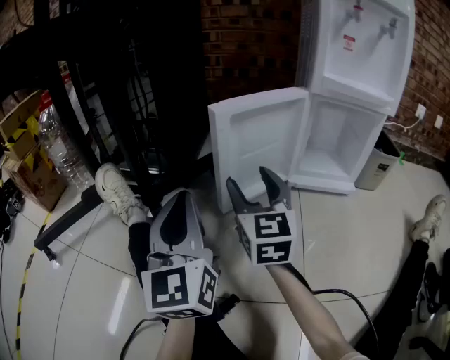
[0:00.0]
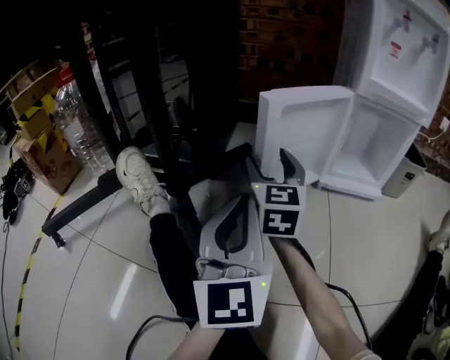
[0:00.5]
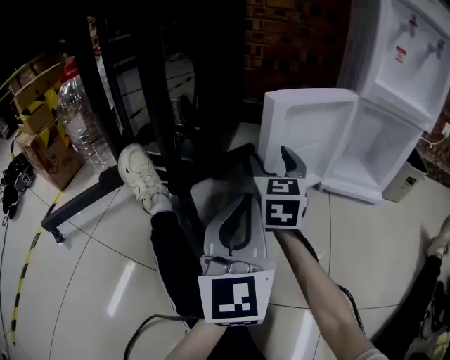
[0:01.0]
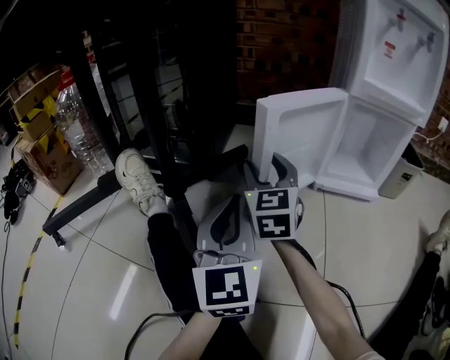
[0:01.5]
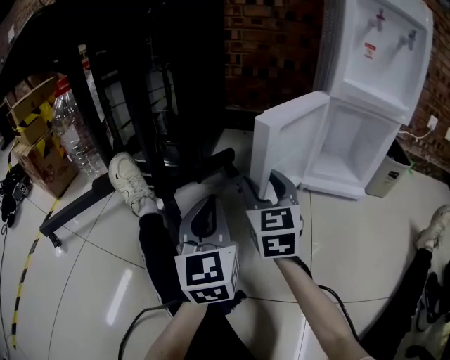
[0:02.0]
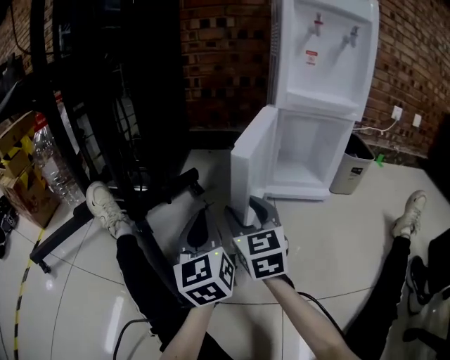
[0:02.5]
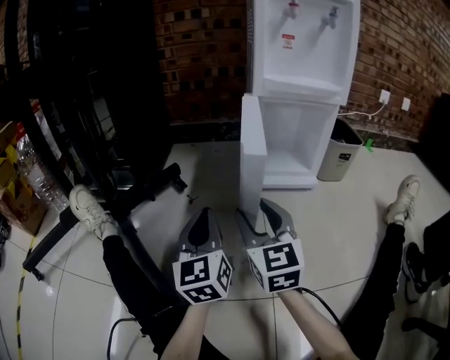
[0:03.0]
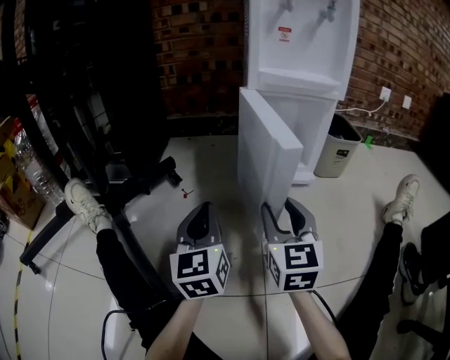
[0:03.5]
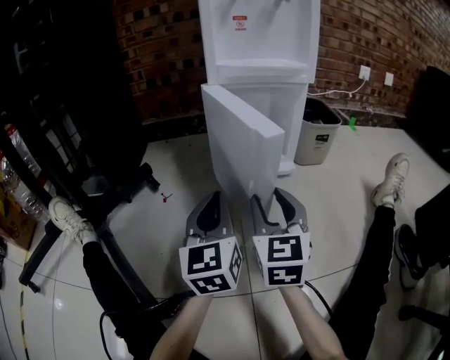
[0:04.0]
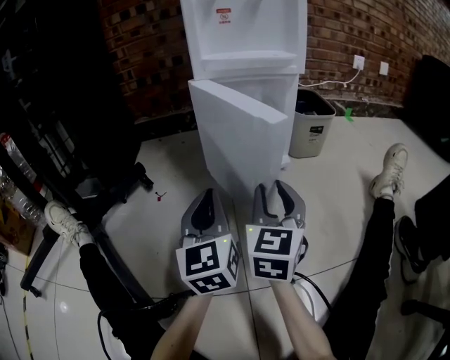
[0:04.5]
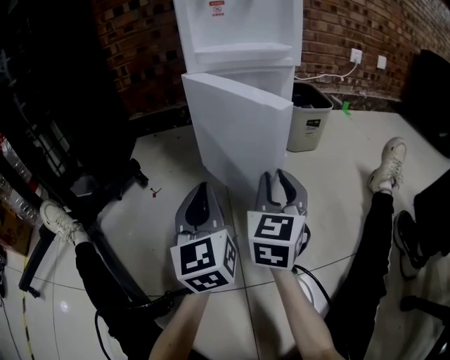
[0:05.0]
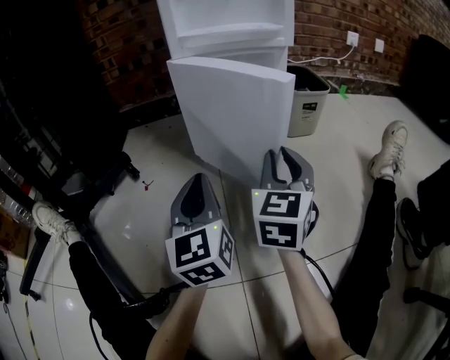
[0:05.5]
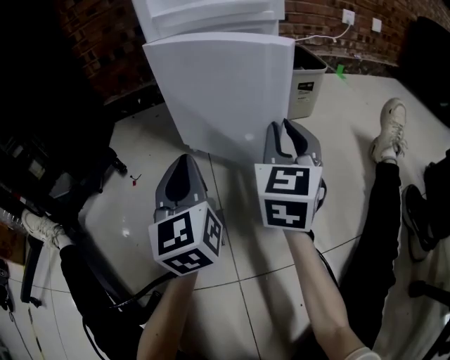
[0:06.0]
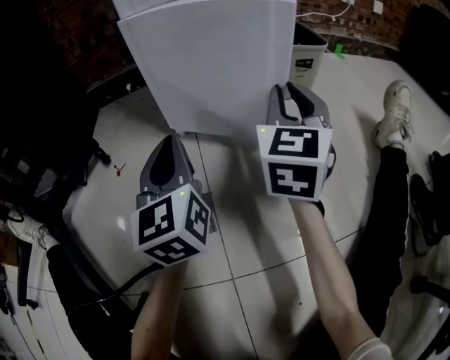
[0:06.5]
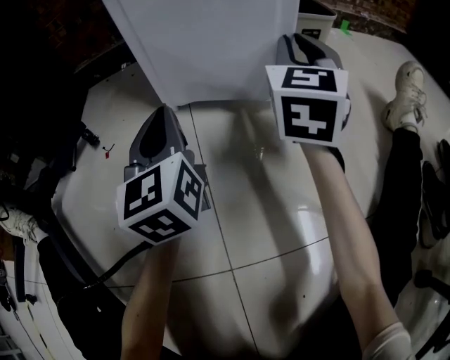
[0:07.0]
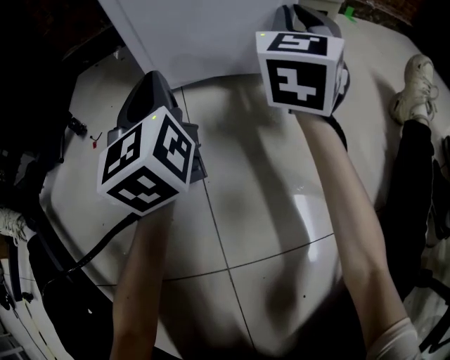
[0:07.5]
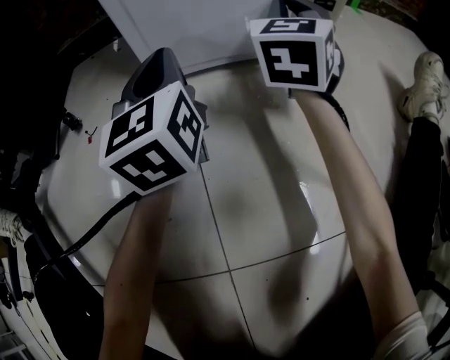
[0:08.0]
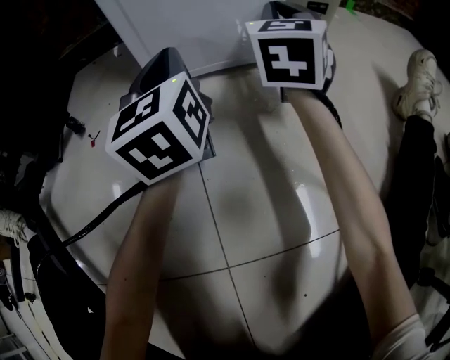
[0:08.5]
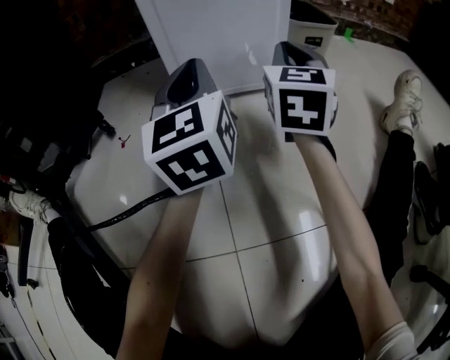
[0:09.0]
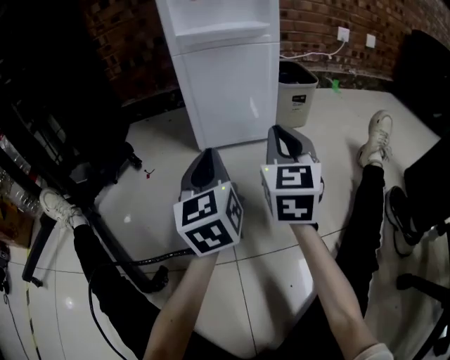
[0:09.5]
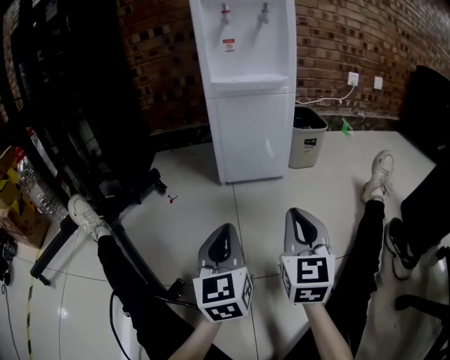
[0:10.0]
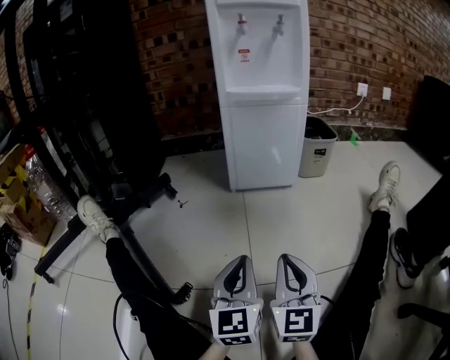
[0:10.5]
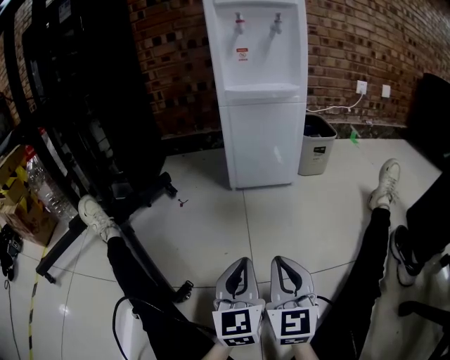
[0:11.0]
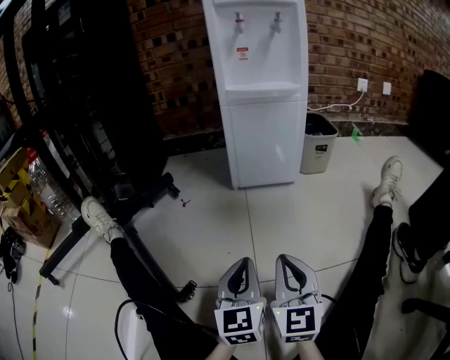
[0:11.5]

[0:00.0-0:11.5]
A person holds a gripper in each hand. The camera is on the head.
0:00.0 to 0:02.0: The left gripper is displaced downward by about 5 cm. The right gripper reaches approximately 10 cm forward, then returns.
0:02.0 to 0:04.0: The two grippers go approximately 25 cm to the right. The left gripper turns by roughly 20 degrees, while the right gripper turns by approximately 20 degrees.
0:04.0 to 0:06.0: The right gripper travels to the right and forward by some 15 cm, and closes up. Meanwhile the left gripper goes roughly 5 cm forward.
0:06.0 to 0:07.5: Both grippers travel together forward, some 10 cm.
0:07.5 to 0:09.5: The left gripper is displaced backward and upward by roughly 15 cm. The right gripper shifts roughly 20 cm backward.
0:09.5 to 0:11.5: The right gripper travels backward by about 20 cm. The left gripper travels backward and downward by roughly 20 cm.

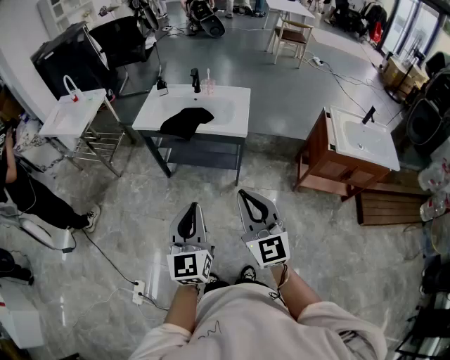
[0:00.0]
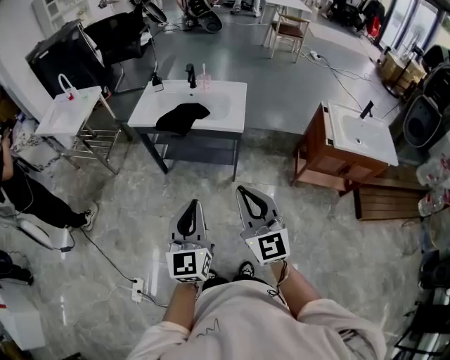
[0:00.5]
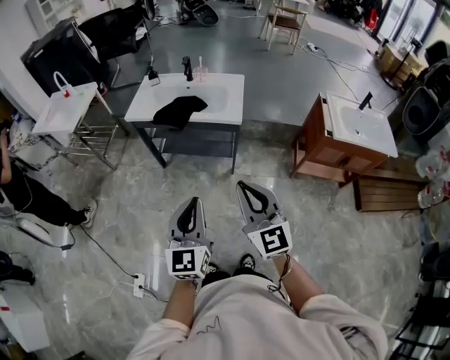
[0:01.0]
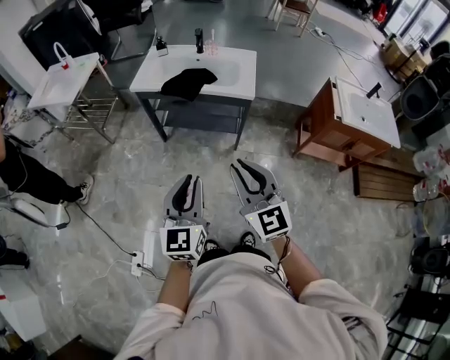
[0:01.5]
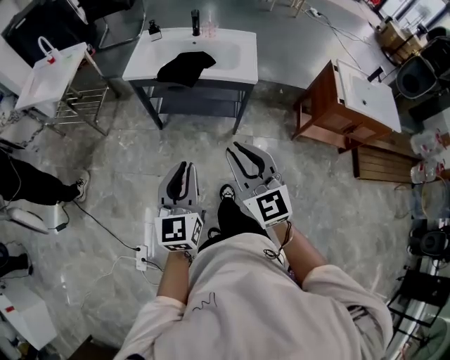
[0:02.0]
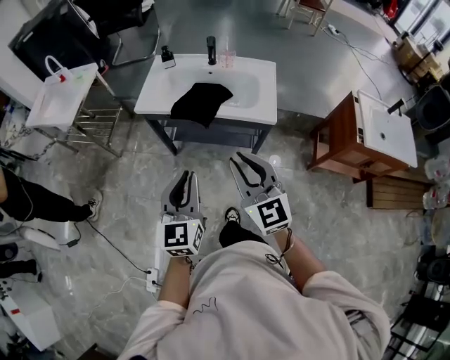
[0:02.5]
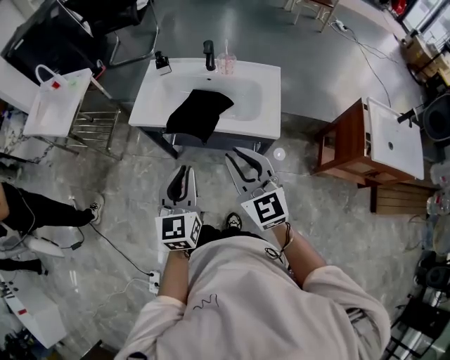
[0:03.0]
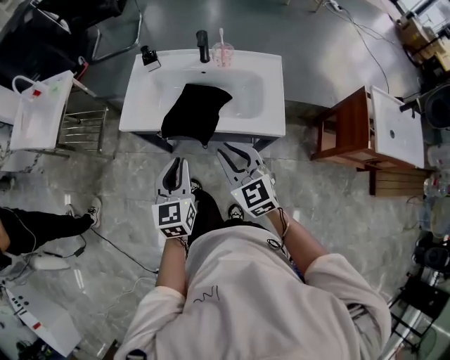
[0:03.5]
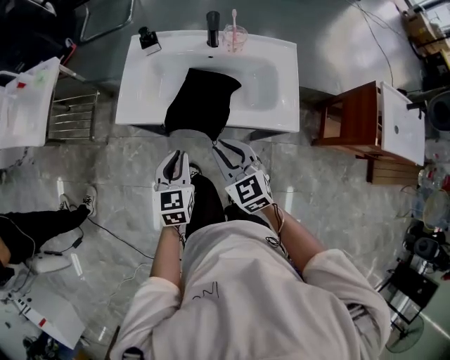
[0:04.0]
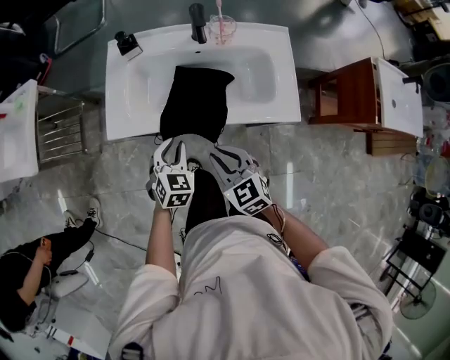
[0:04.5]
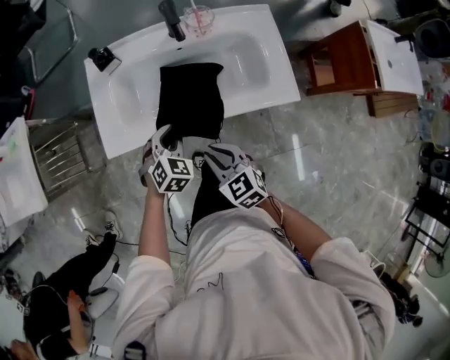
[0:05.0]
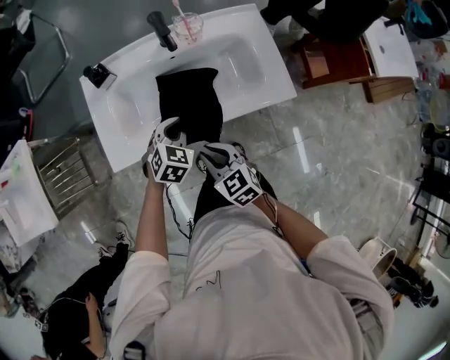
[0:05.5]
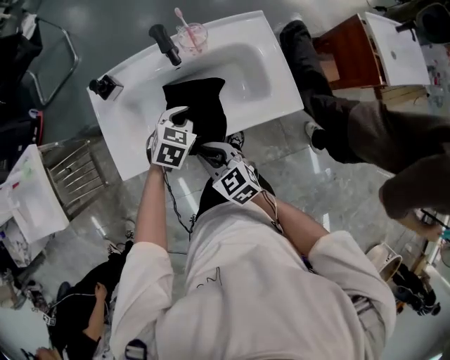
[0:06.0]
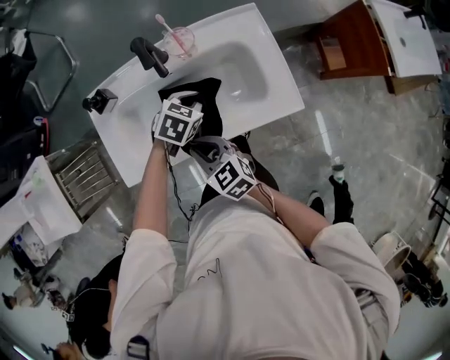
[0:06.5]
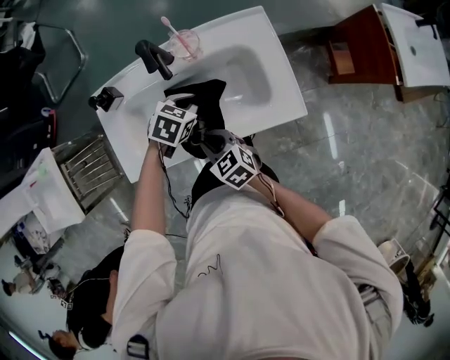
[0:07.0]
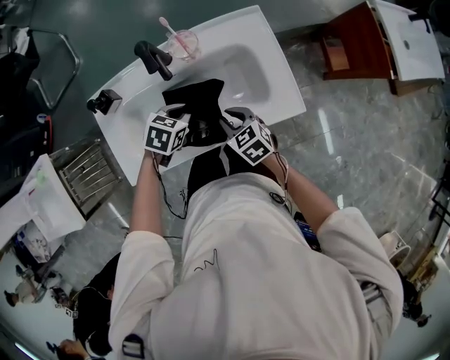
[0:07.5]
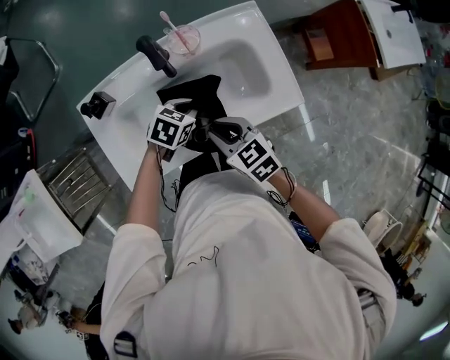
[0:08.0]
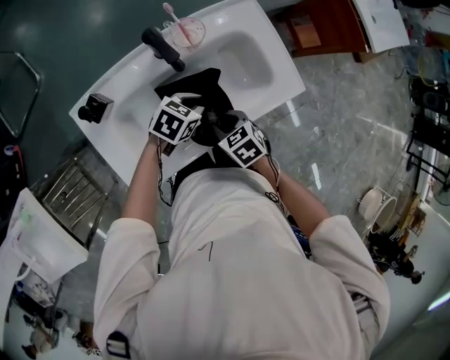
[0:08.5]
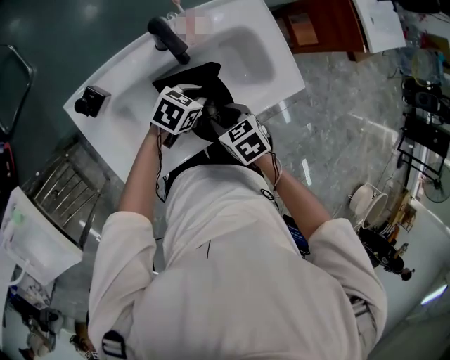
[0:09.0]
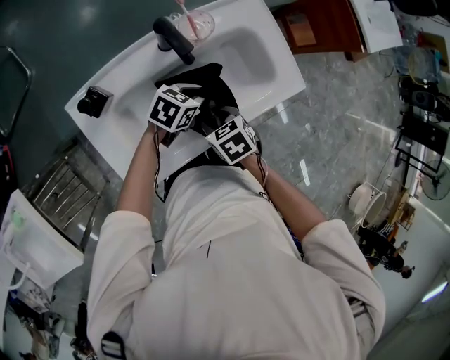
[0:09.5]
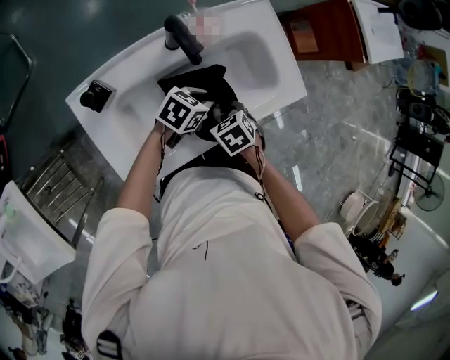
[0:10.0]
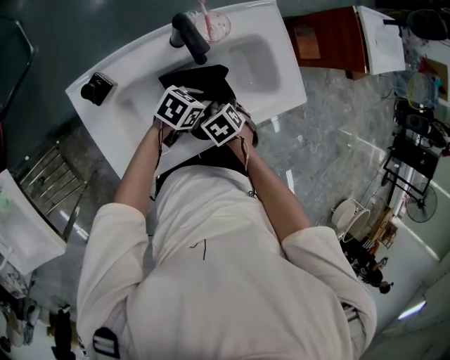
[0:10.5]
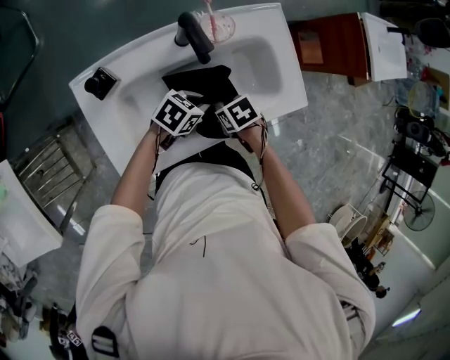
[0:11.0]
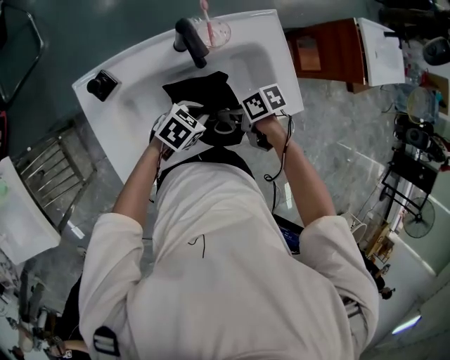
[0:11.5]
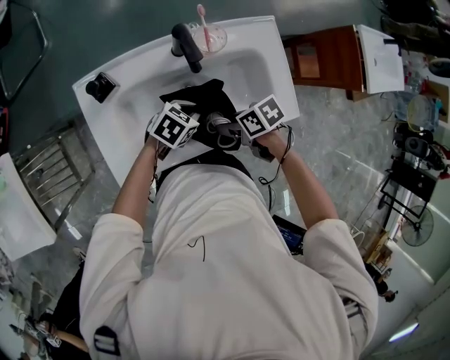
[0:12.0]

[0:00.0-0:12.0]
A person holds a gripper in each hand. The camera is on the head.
0:00.0 to 0:02.0: The right gripper goes some 15 cm to the left, forward and downward, while the left gripper moves to the left, downward and forward, approximately 15 cm.
0:02.0 to 0:04.0: The pair of grippers is taken forward, some 40 cm. The right gripper swivels approximately 20 degrees; the left gripper swivels roughly 30 degrees.
0:04.0 to 0:06.0: The right gripper heads forward and downward, covering about 10 cm, and changes its angle by some 20 degrees; the left gripper heads forward and to the right, covering some 25 cm, and changes its angle by approximately 50 degrees.
0:06.0 to 0:08.0: The left gripper changes place by roughly 5 cm, and rotates about 20 degrees; the right gripper is displaced forward by roughly 10 cm.
0:08.0 to 0:10.0: The right gripper moves downward, approximately 10 cm, tilts its fingers some 30 degrees downward, and opens up, while the left gripper changes its angle by some 20 degrees.
0:10.0 to 0:12.0: The right gripper heads upward, covering approximately 5 cm, and changes its angle by approximately 30 degrees.

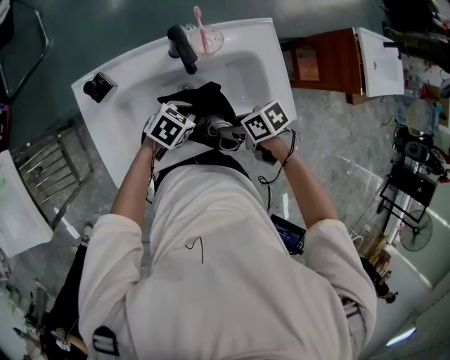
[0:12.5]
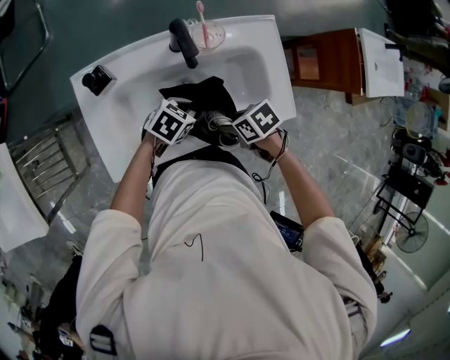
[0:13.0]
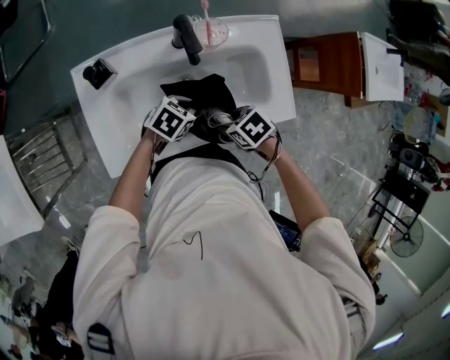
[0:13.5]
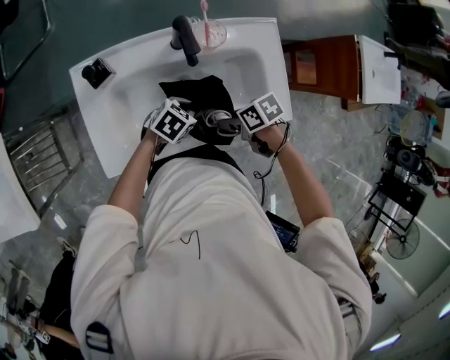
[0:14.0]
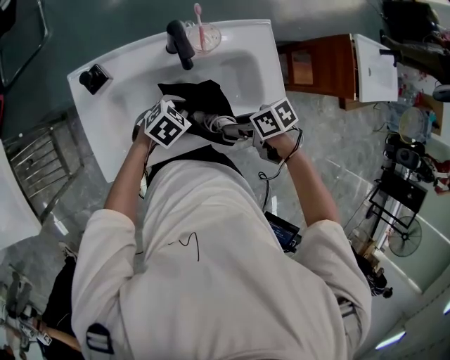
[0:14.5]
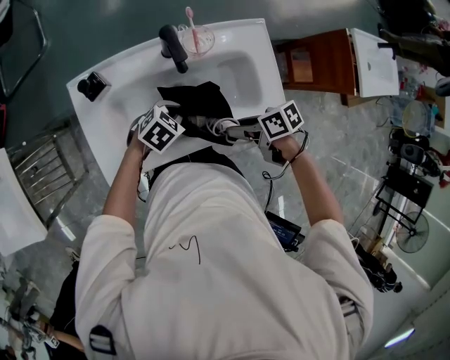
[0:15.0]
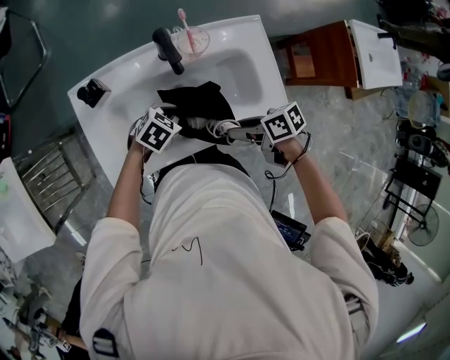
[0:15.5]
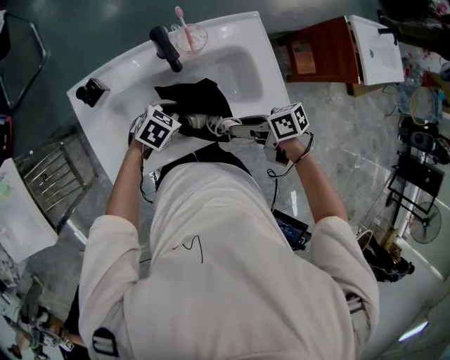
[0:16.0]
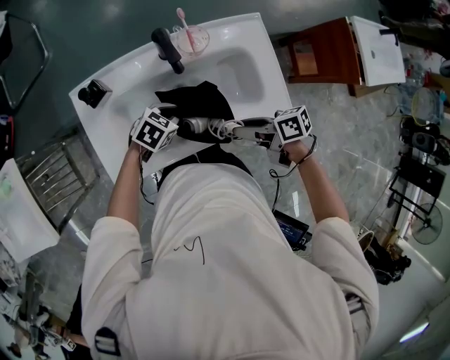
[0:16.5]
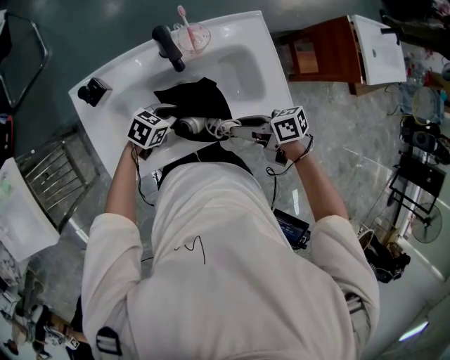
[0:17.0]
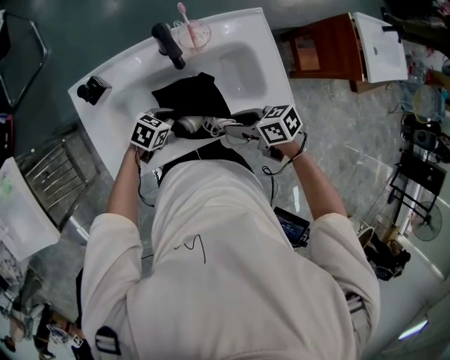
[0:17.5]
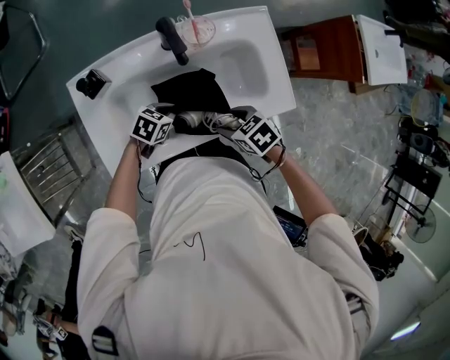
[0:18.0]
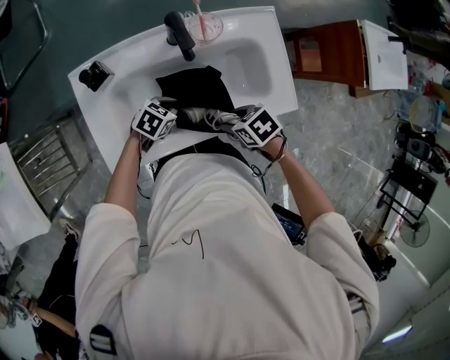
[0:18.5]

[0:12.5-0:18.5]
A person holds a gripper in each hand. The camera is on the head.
0:14.5 to 0:16.5: The right gripper swivels approximately 20 degrees.
0:16.5 to 0:18.5: Both grippers move downward, about 5 cm. The right gripper points its fingers roughly 40 degrees further downward.
